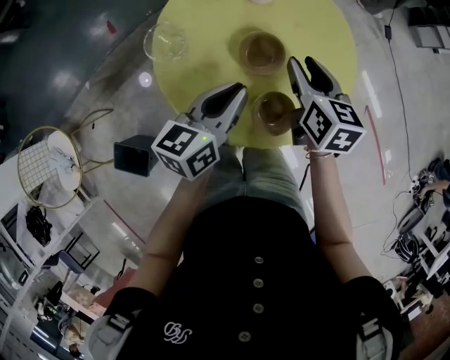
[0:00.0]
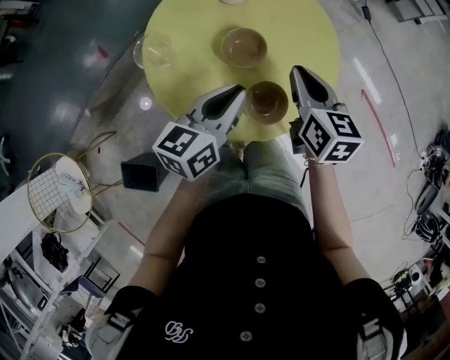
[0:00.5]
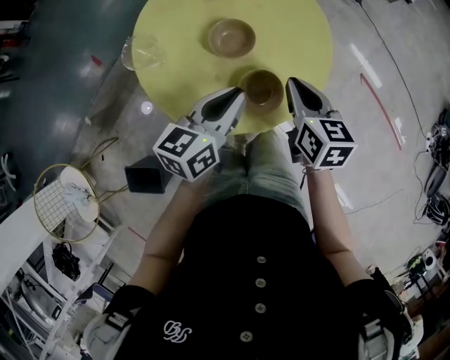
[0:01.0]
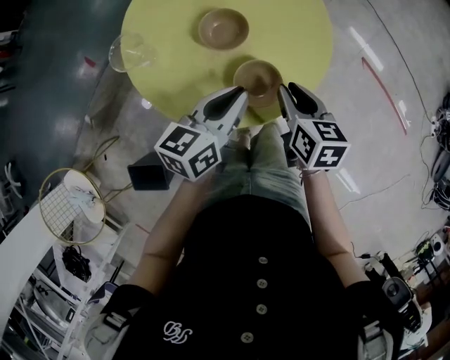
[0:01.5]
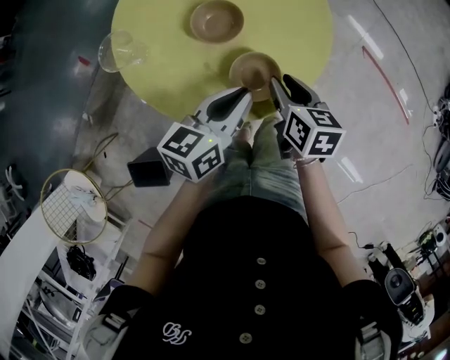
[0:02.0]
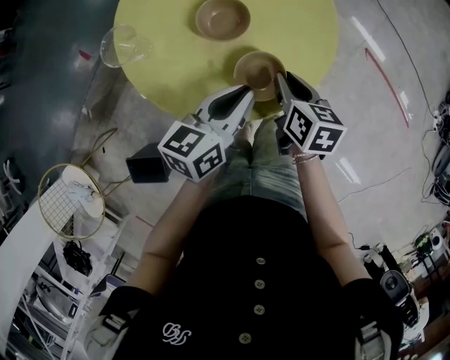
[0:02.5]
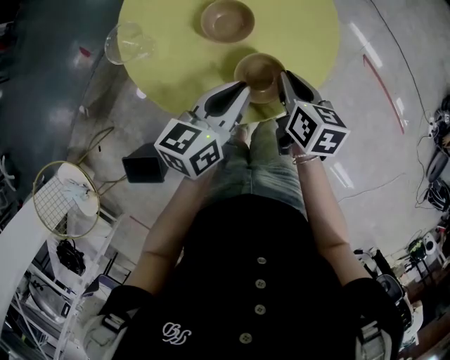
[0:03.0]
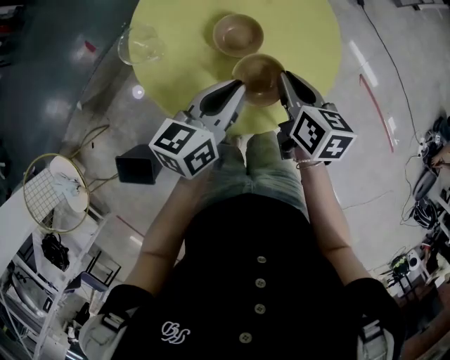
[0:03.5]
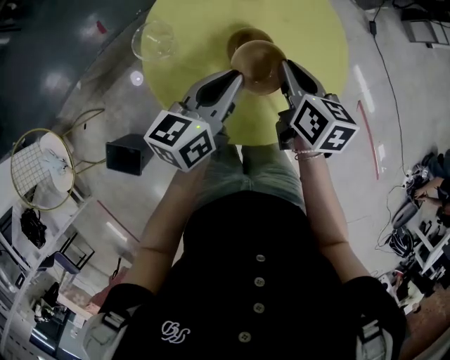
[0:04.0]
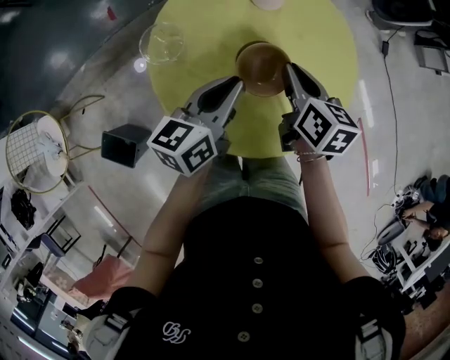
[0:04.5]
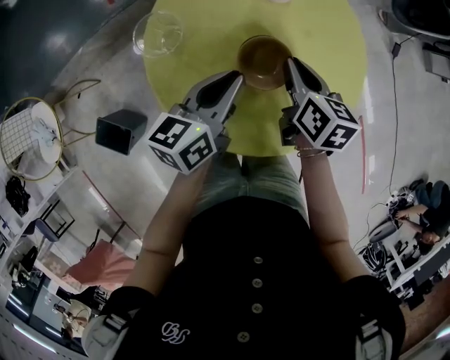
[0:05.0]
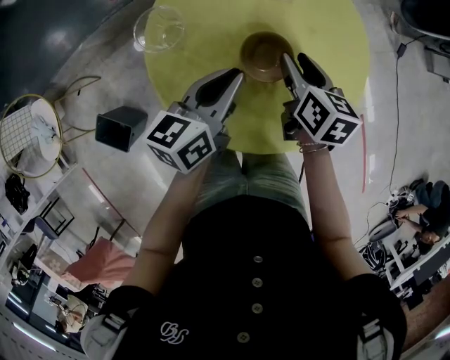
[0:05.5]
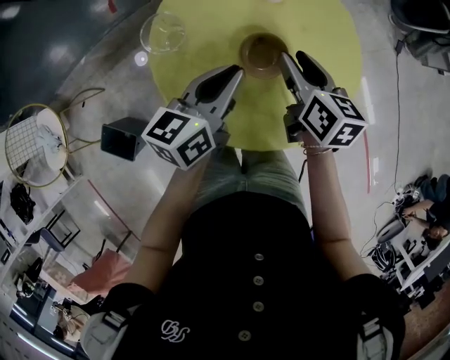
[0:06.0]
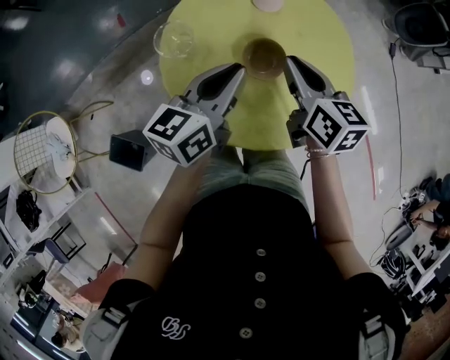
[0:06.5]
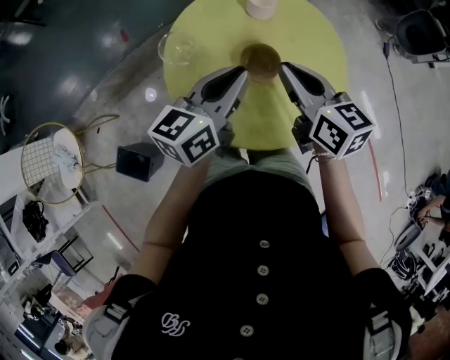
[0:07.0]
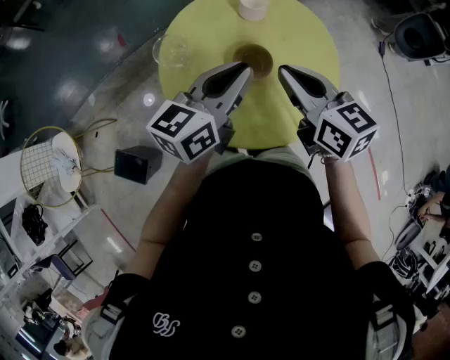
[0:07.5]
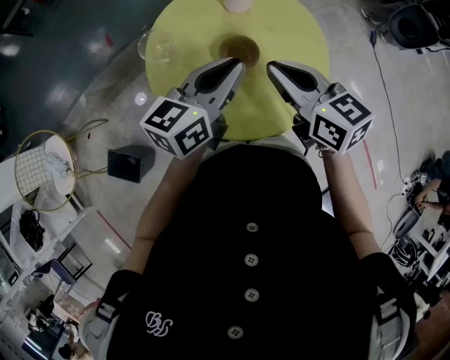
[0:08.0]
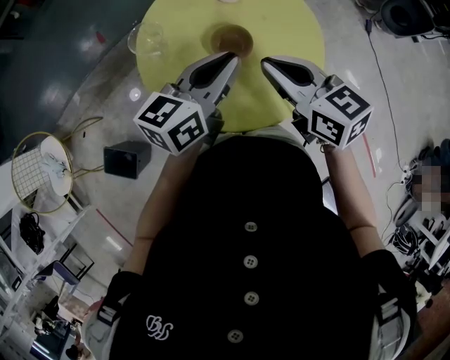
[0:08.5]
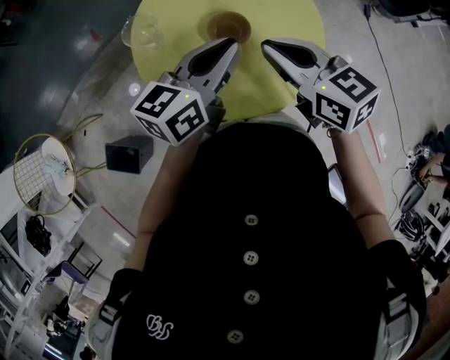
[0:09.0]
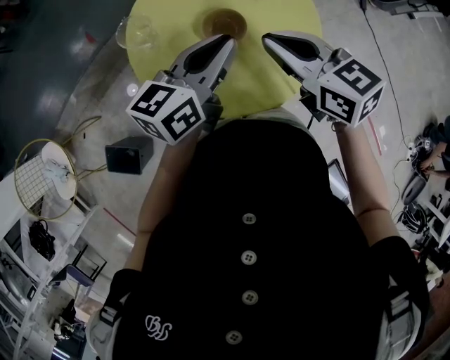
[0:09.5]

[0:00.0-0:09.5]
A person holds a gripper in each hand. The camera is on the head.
0:00.0 to 0:02.0: The right gripper heads backward, downward and to the right, covering roughly 15 cm, changes its angle by approximately 20 degrees, and closes and opens again. Meanwhile the left gripper goes roughly 10 cm to the right and backward, and changes its angle by some 20 degrees.
0:02.0 to 0:04.0: The right gripper moves forward, upward and to the left, roughly 15 cm, and closes its fingers; the left gripper moves forward, to the left and upward, roughly 10 cm, and swivels about 20 degrees.
0:04.0 to 0:05.5: The right gripper moves downward and forward, some 10 cm, and opens its fingers.
0:05.5 to 0:07.5: The right gripper shifts about 20 cm upward and backward, swivels approximately 30 degrees, and closes up; the left gripper moves upward, some 10 cm, and turns by about 20 degrees.
0:07.5 to 0:09.5: The grippers stay close to where they were, moving slightly.

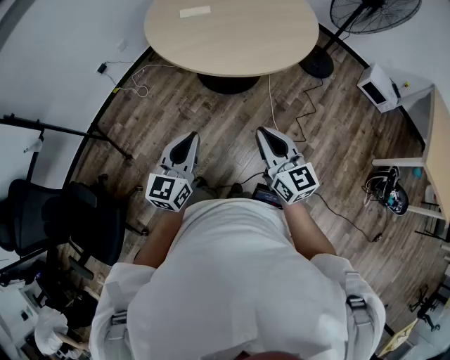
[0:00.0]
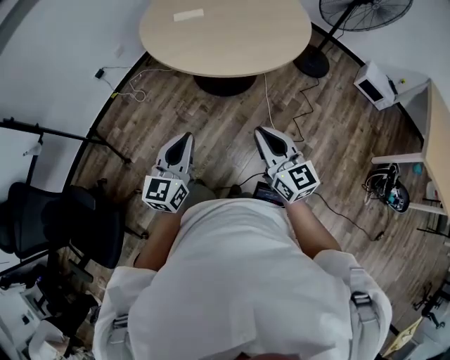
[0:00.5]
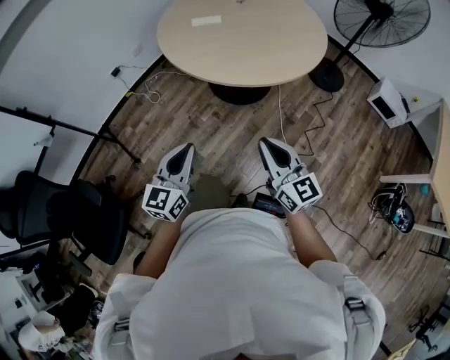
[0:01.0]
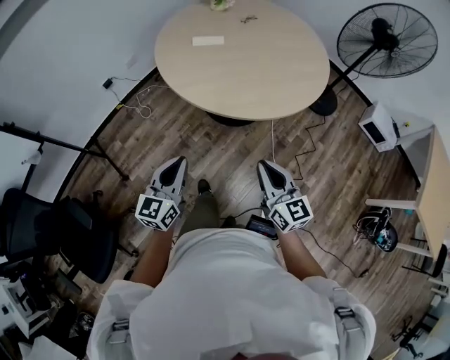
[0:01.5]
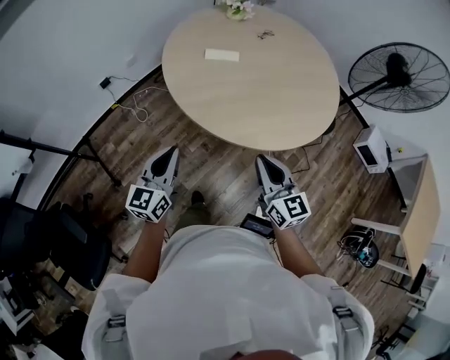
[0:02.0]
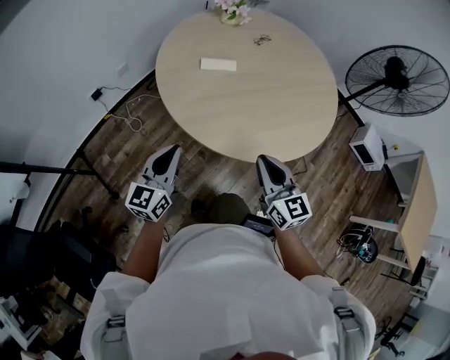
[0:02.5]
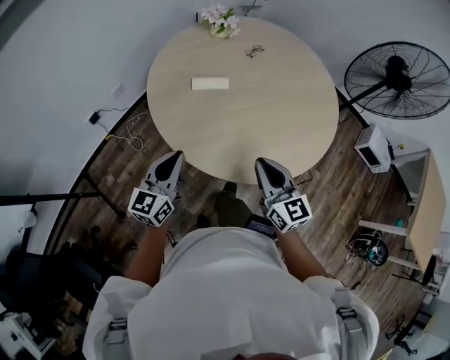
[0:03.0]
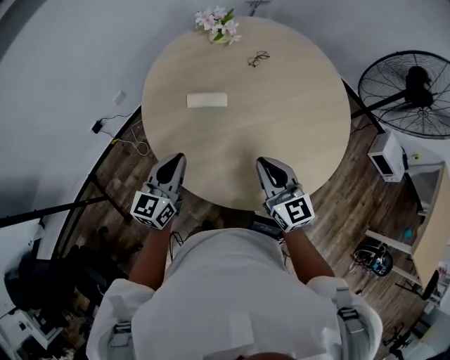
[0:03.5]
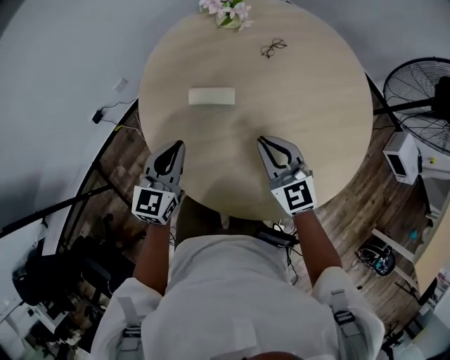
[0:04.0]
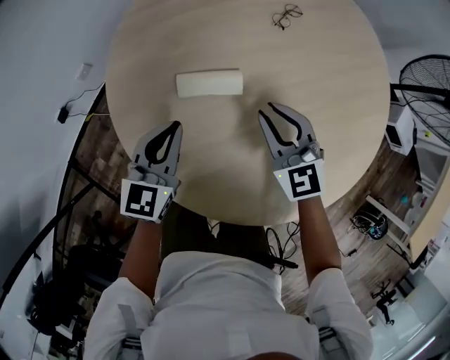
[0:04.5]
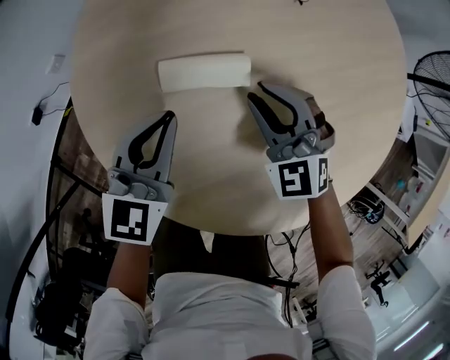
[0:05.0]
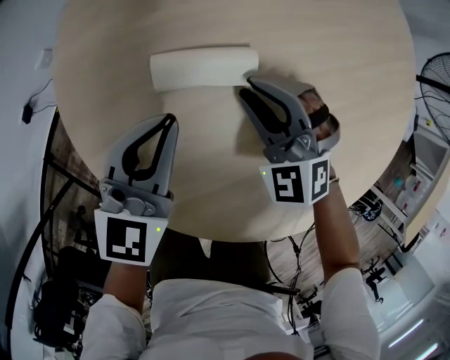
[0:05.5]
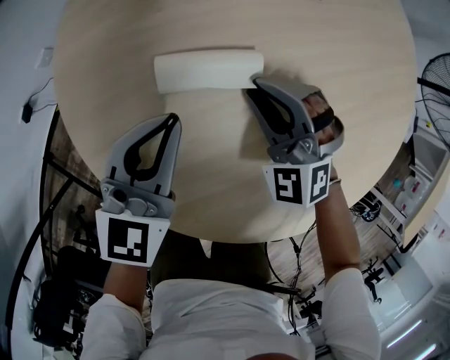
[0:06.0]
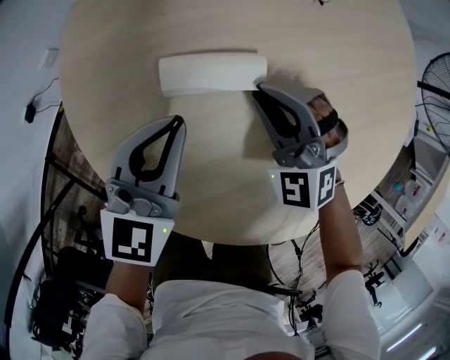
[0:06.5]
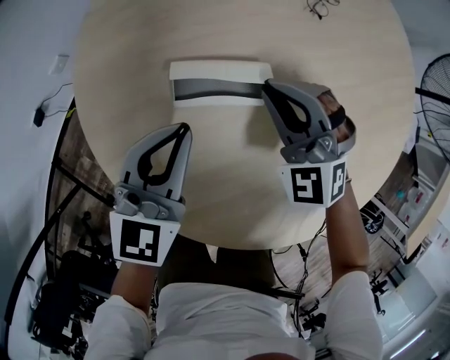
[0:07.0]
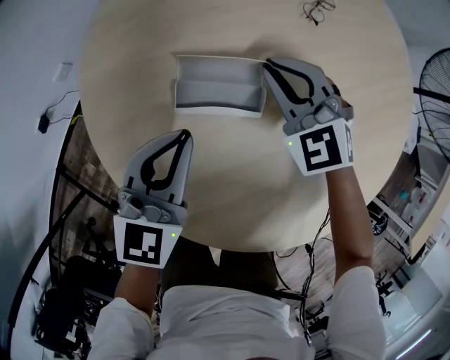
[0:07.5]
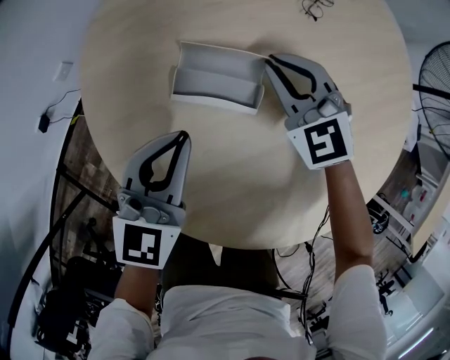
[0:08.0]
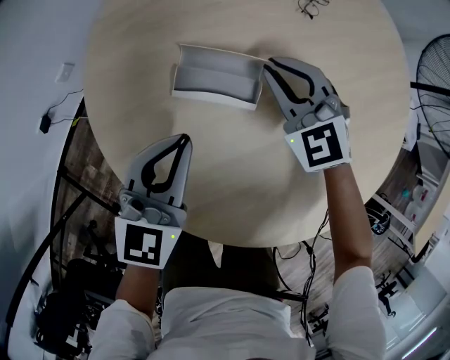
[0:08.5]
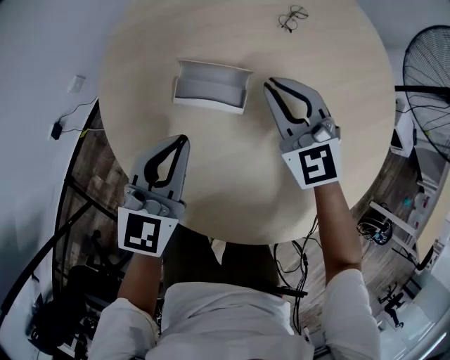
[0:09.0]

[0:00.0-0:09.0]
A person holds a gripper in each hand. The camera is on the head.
0:00.0 to 0:02.0: The right gripper is displaced forward by some 25 cm. Meanwhile the left gripper moves forward and to the left, approximately 30 cm.
0:02.0 to 0:04.5: Both grippers are carried forward, some 50 cm. The right gripper rotates roughly 30 degrees. The left gripper rotates roughly 20 degrees.
0:04.5 to 0:07.0: The right gripper heads downward and forward, covering roughly 10 cm, and rotates approximately 40 degrees. Meanwhile the left gripper changes place by about 5 cm.
0:07.0 to 0:09.0: The right gripper travels upward by some 5 cm, and changes its angle by some 30 degrees. The left gripper ends up some 5 cm from where it was.

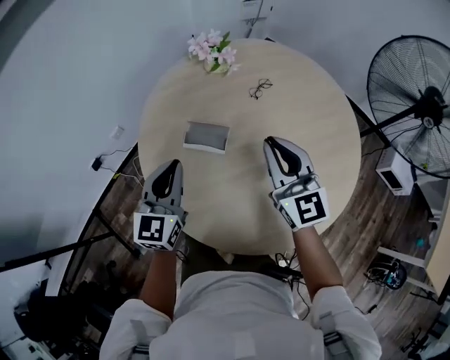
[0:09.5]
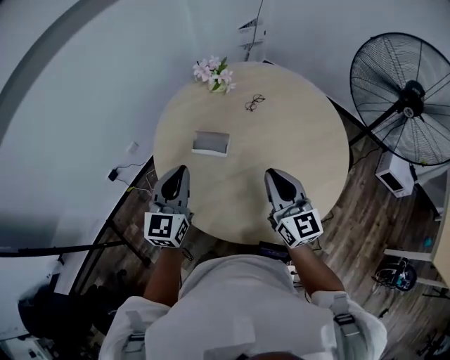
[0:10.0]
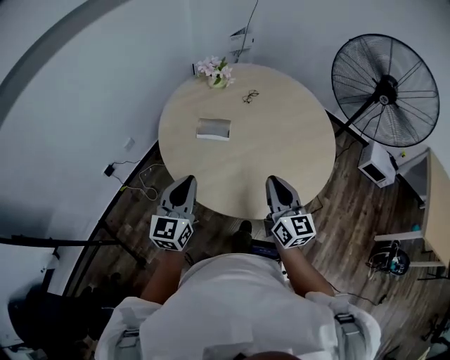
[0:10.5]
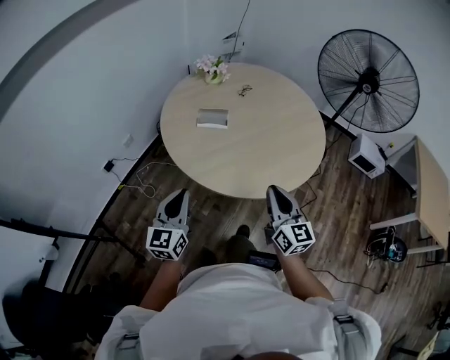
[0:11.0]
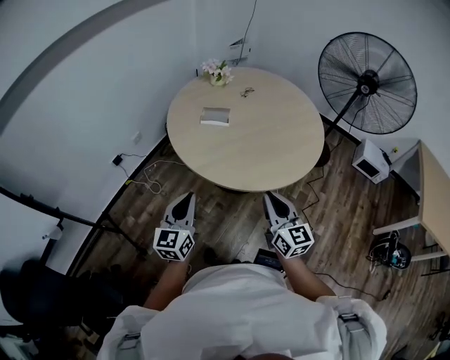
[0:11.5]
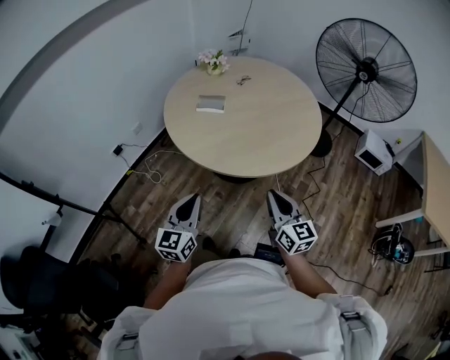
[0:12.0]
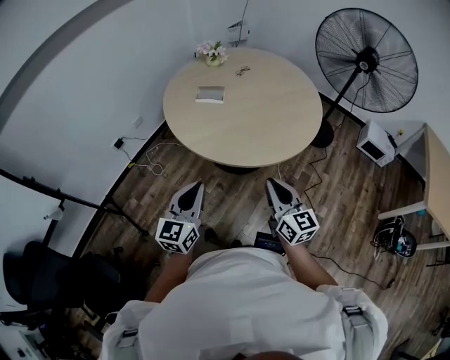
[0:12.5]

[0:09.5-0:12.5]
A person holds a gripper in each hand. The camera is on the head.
0:09.5 to 0:11.0: The two grippers go roughly 35 cm backward. The right gripper swivels some 30 degrees.
0:11.0 to 0:12.5: Both grippers move backward and to the right, some 15 cm.

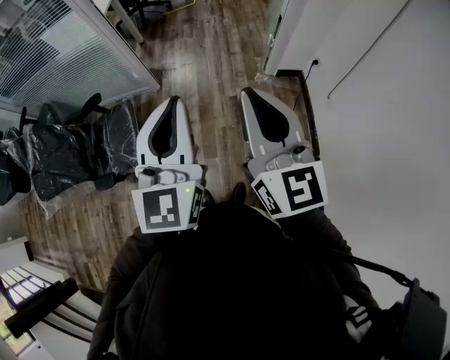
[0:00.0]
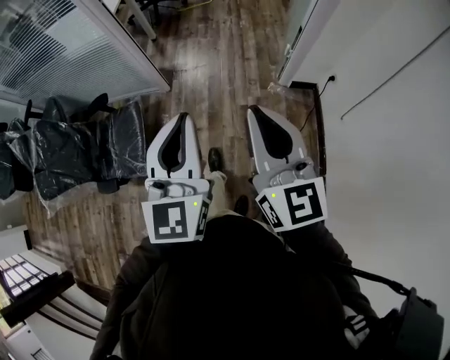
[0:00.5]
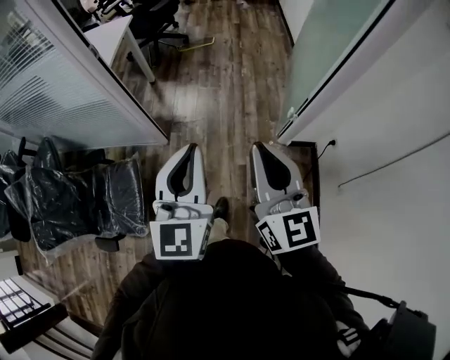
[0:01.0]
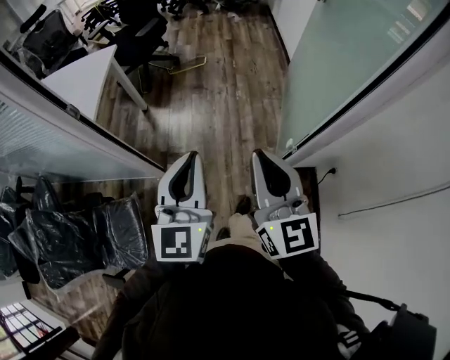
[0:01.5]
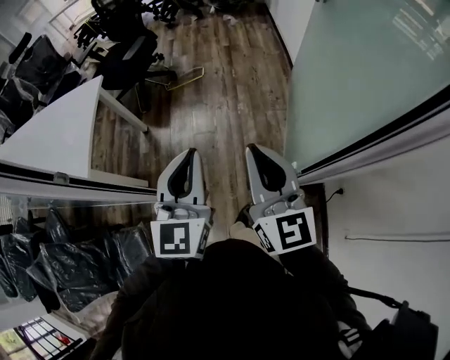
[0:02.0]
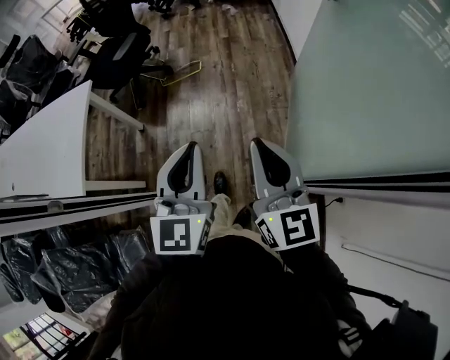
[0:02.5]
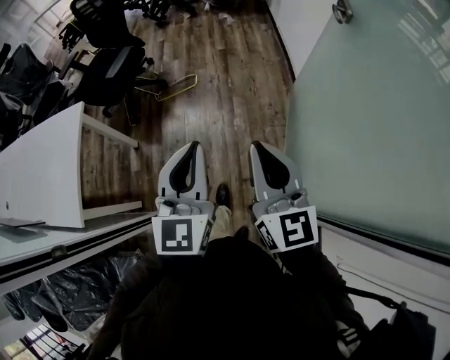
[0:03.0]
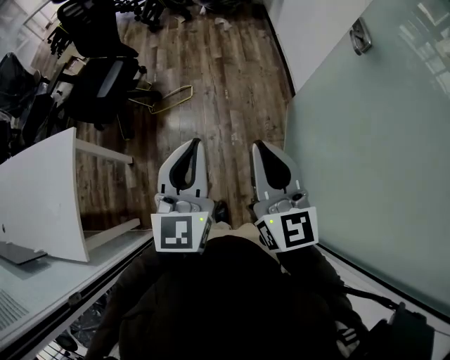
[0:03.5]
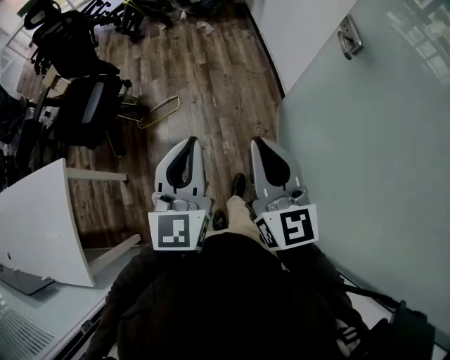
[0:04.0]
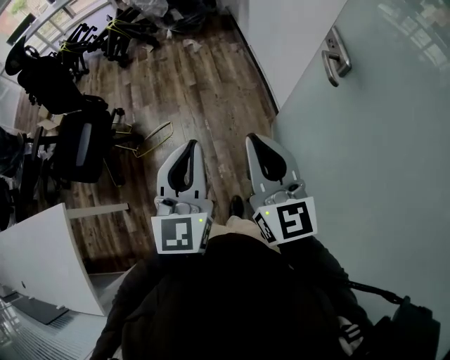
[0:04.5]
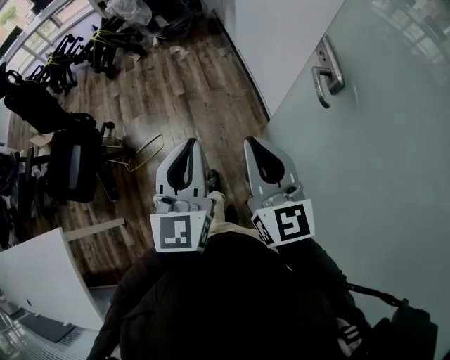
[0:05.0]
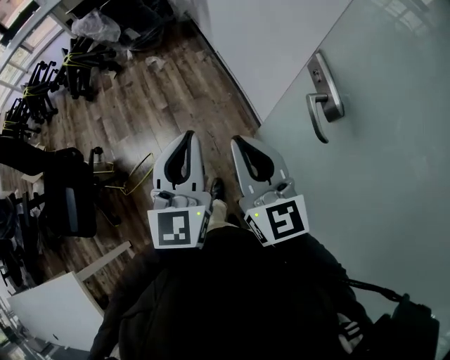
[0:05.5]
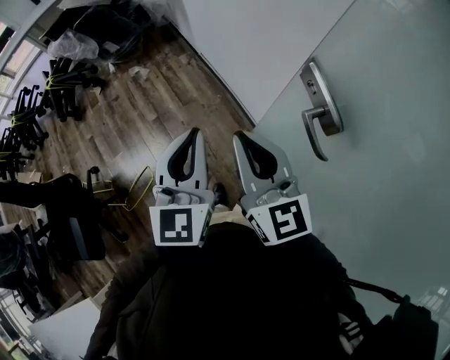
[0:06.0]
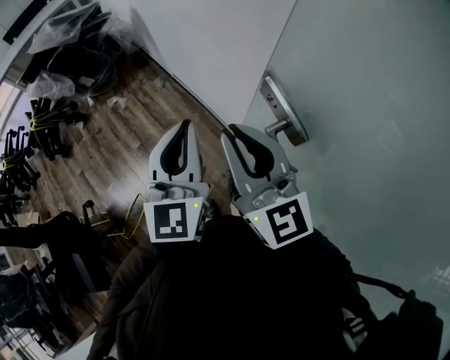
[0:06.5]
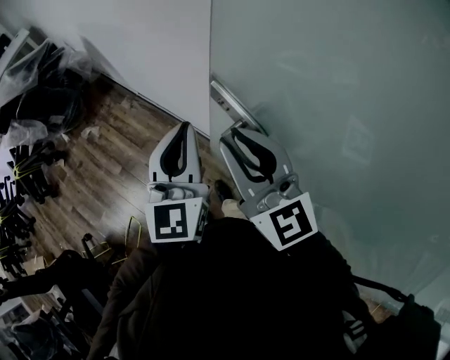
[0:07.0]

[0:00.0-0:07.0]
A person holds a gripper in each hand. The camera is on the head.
0:00.0 to 0:02.0: The two grippers travel together, forward, about 80 cm.
0:02.0 to 0:03.5: Both grippers are carried forward, about 40 cm.
0:03.5 to 0:05.0: Both grippers travel together forward and to the right, approximately 35 cm.
0:05.0 to 0:07.0: The right gripper changes place by some 25 cm, and changes its angle by approximately 30 degrees. The left gripper changes place by approximately 35 cm, and swivels about 40 degrees.
